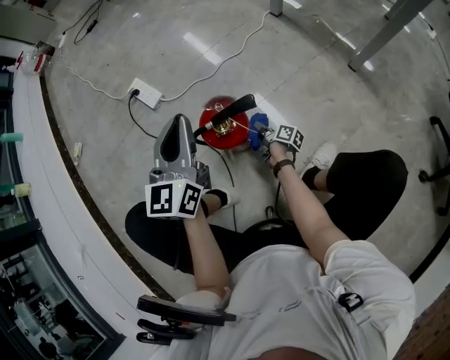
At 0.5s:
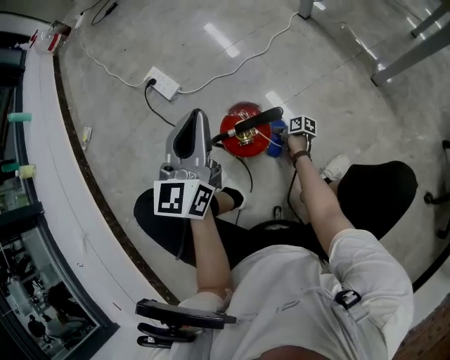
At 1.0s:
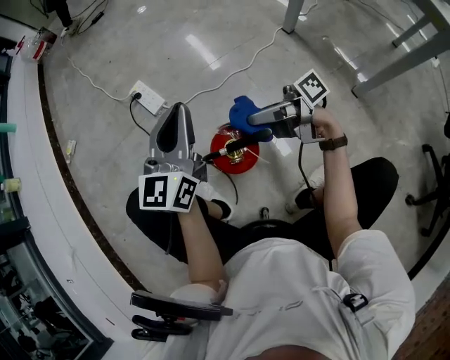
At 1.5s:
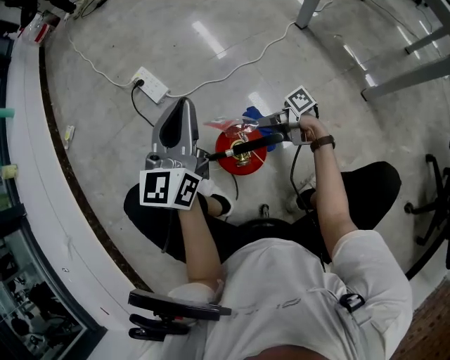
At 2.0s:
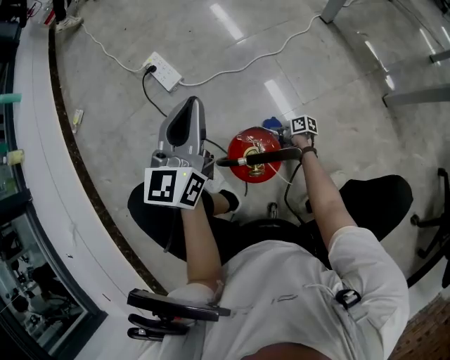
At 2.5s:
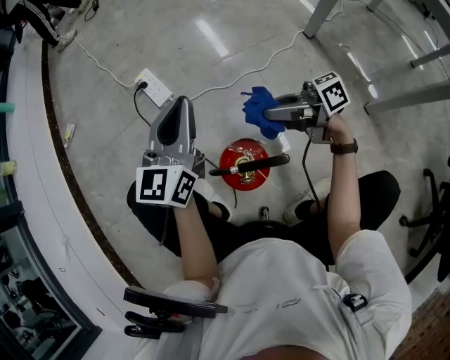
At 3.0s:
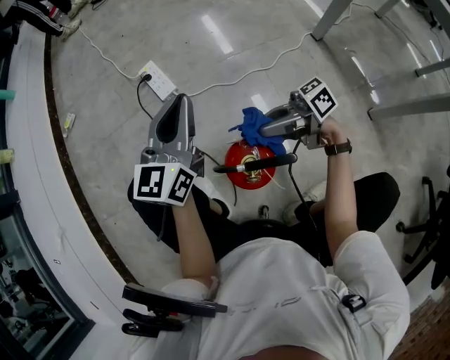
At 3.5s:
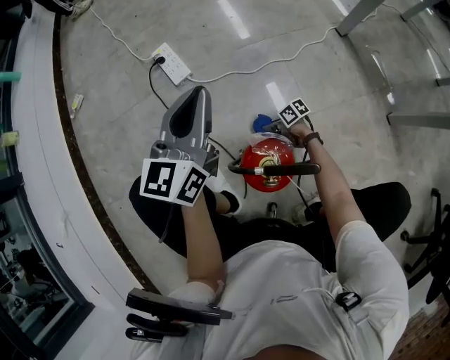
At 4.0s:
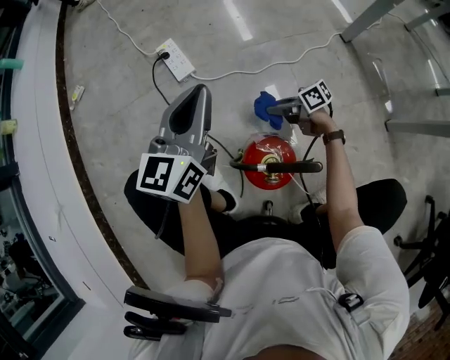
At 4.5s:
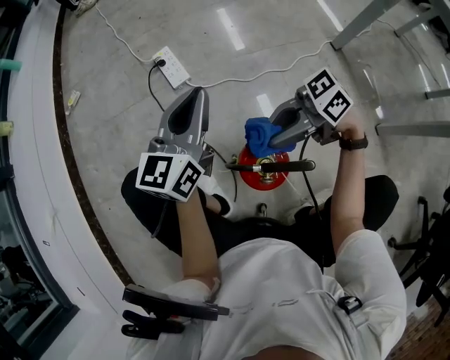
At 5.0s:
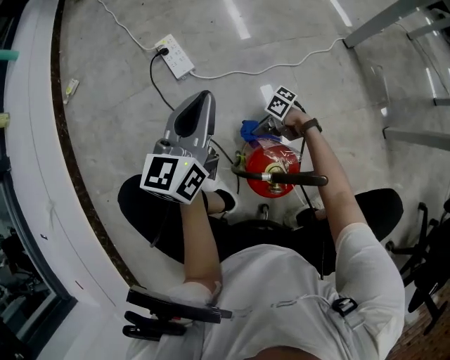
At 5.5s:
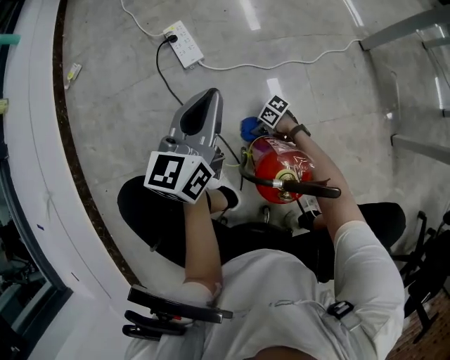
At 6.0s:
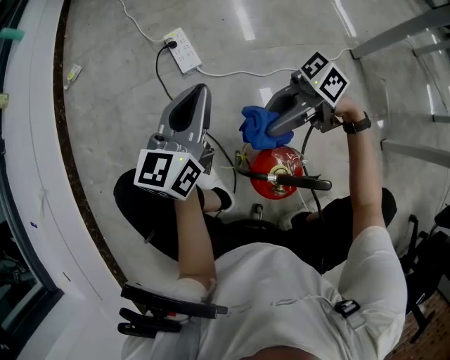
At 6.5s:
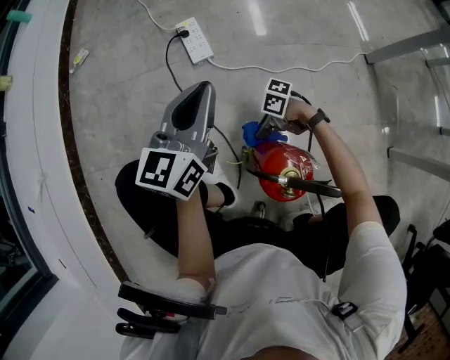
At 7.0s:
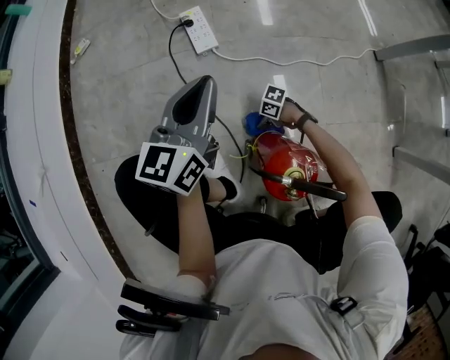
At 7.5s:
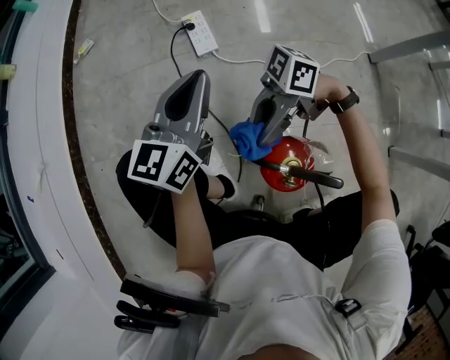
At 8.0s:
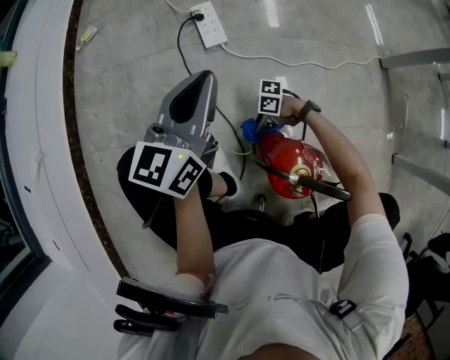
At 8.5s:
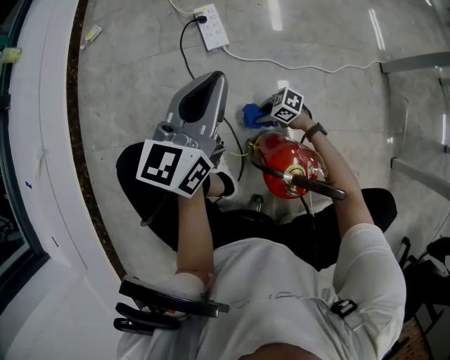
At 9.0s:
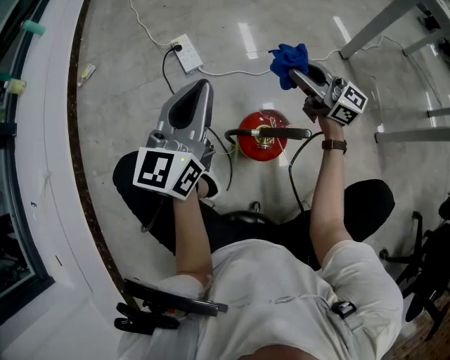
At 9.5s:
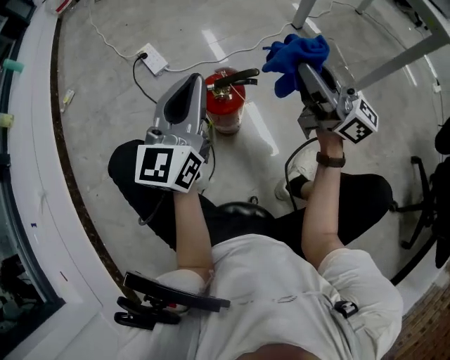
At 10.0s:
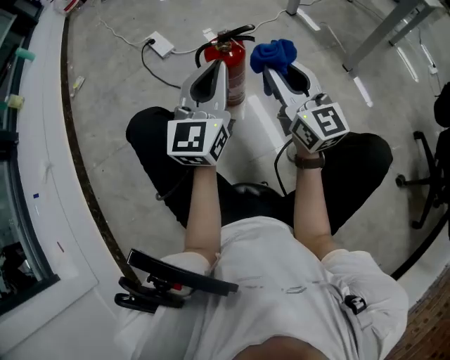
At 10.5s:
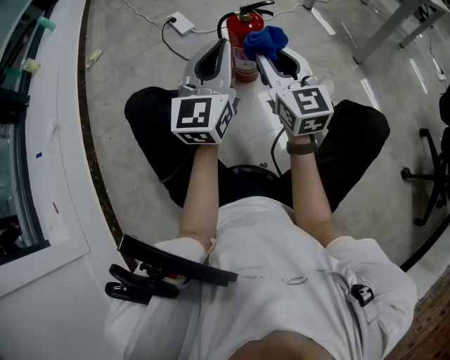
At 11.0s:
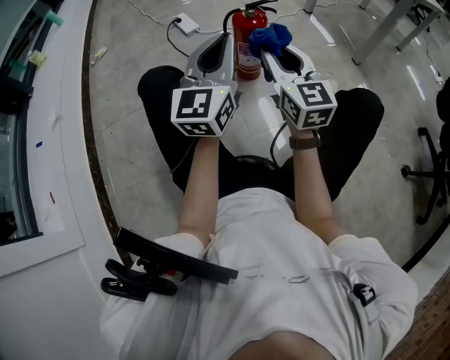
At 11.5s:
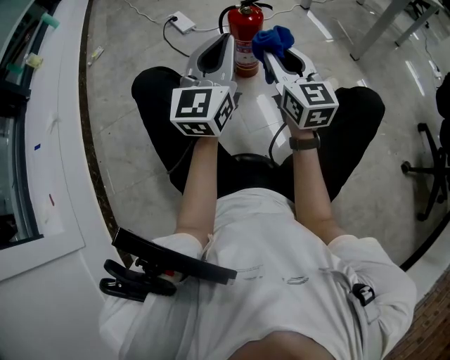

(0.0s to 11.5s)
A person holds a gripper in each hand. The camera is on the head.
0.0s - 2.0s: The left gripper moves approximately 10 cm. Meanwhile the right gripper goes up and down, approximately 50 cm each way, reversing 2 times, and rotates some 40 degrees.
2.0s - 4.0s: The right gripper goes up and down, roughly 40 cm each way, reversing 2 times, and swivels some 50 degrees.
4.0s - 6.0s: The right gripper swings up and down, about 40 cm each way, with 2 reversals, and turns by approximately 50 degrees, while the left gripper moves some 5 cm.
6.0s - 7.5s: The right gripper reaches about 40 cm downward, then returns, and rotates about 30 degrees.
7.5s - 9.5s: The left gripper moves some 25 cm, and turns by roughly 20 degrees; the right gripper changes place by roughly 35 cm, and turns by about 130 degrees.
9.5s - 11.5s: The right gripper heads backward and to the left, covering approximately 25 cm, and swivels roughly 40 degrees. Meanwhile the left gripper goes some 25 cm backward.

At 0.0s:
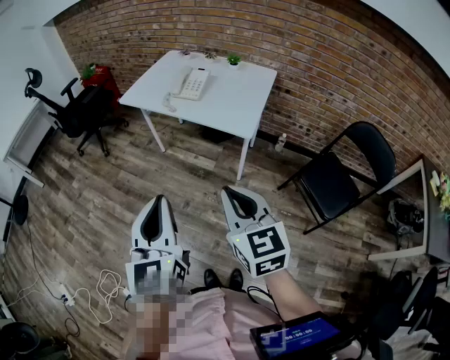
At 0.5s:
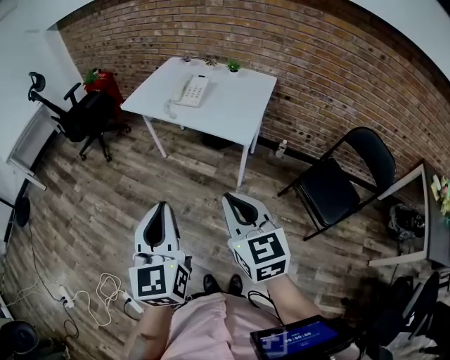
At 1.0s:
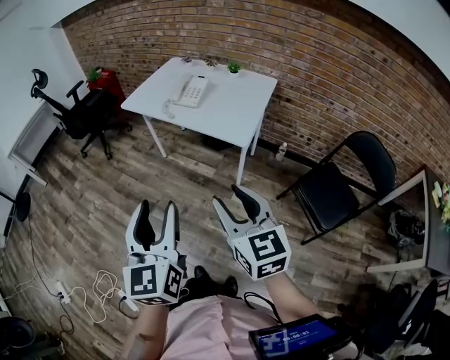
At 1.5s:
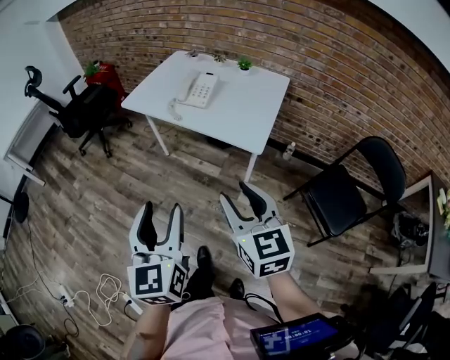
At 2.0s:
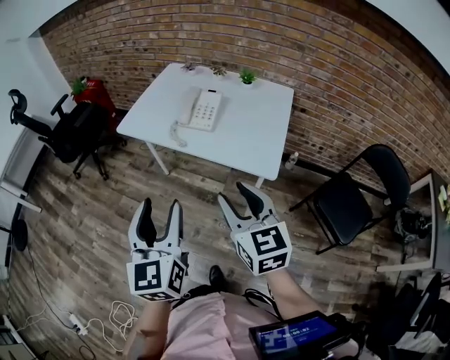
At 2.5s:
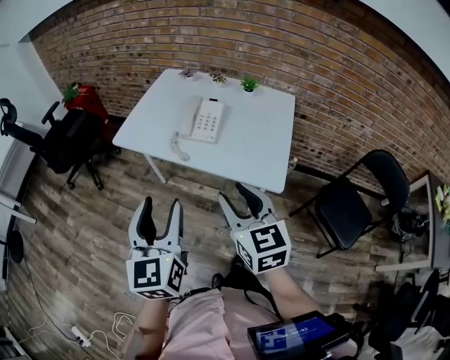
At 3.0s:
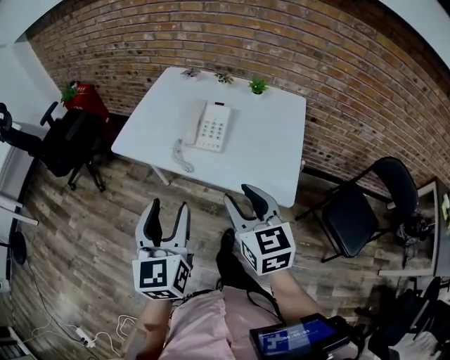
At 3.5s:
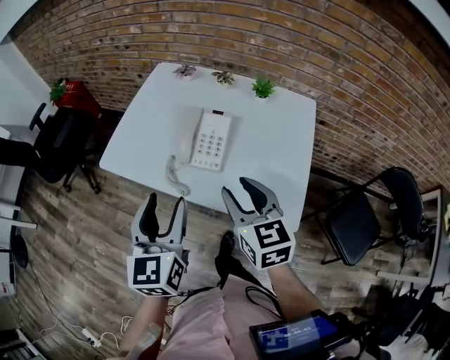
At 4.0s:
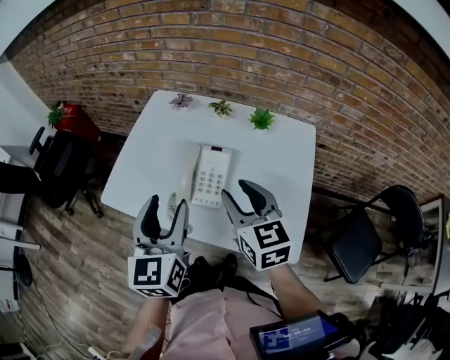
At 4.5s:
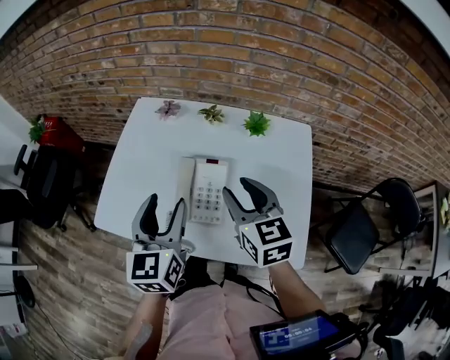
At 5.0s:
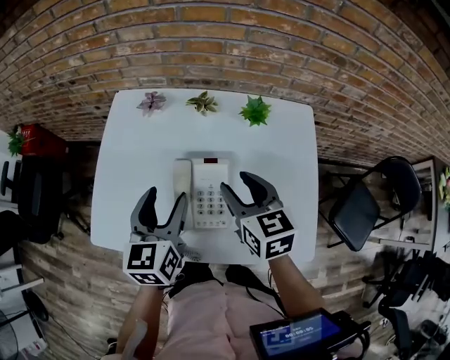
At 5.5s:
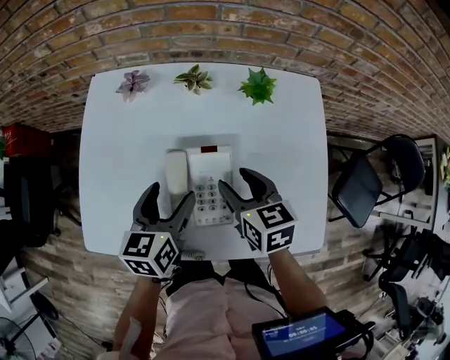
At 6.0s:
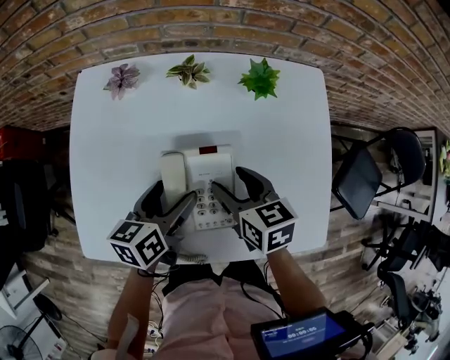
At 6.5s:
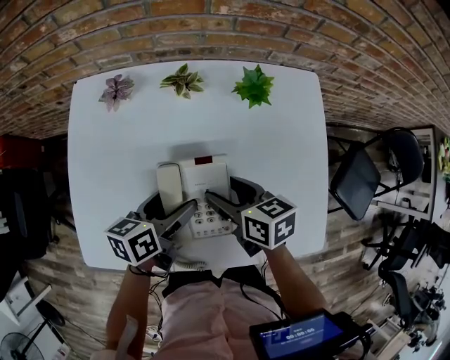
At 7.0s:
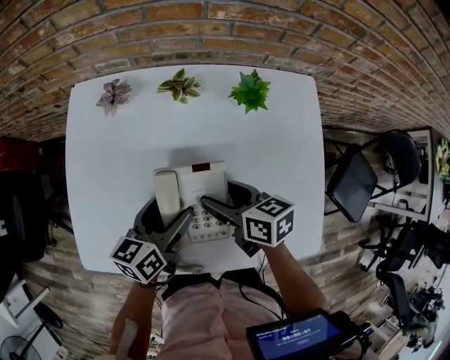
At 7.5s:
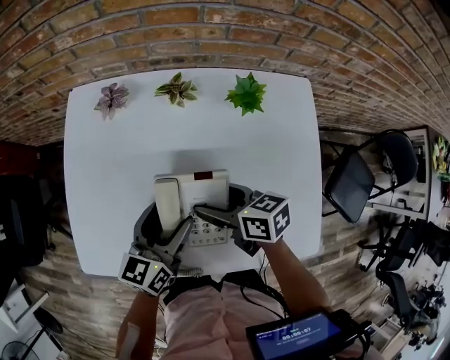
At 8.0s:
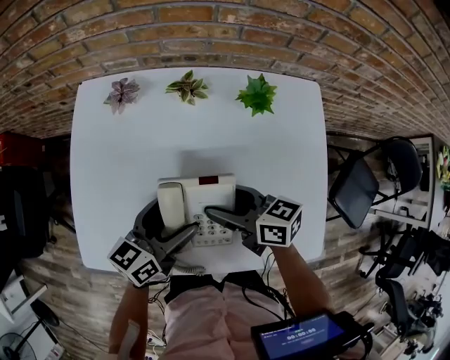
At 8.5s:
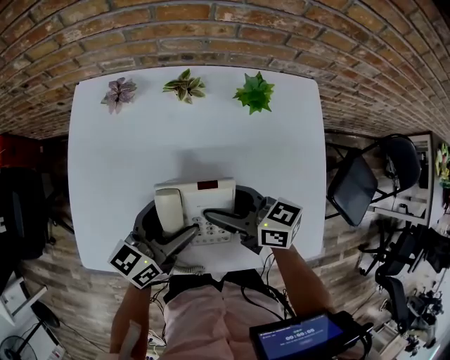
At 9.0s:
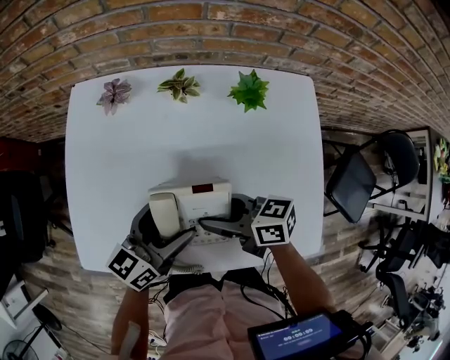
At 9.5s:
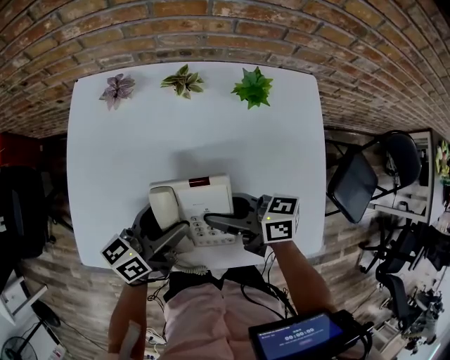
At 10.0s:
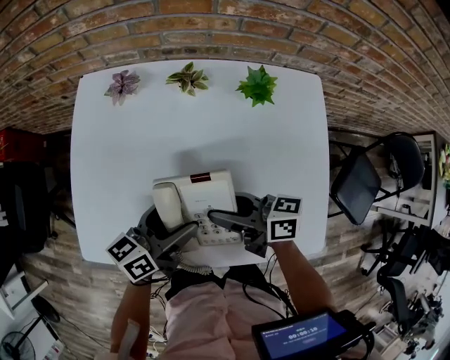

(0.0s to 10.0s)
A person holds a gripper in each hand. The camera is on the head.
0.0s - 2.0s: The two grippers go some 20 cm forward. The left gripper opens; the right gripper opens its fingers.
2.0s - 4.0s: The two grippers go some 35 cm forward.
4.0s - 6.0s: Both grippers move downward, about 20 cm. The right gripper rotates some 30 degrees, while the left gripper changes its angle by approximately 50 degrees.
6.0s - 8.0s: The right gripper changes its angle by some 30 degrees.
8.0s - 10.0s: The grippers move only a little.

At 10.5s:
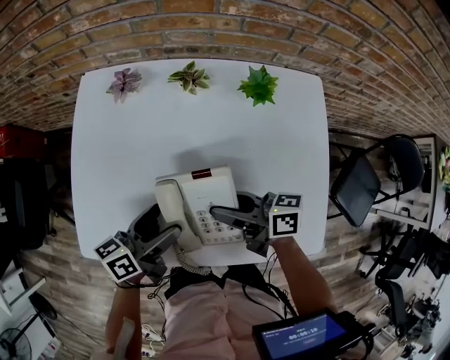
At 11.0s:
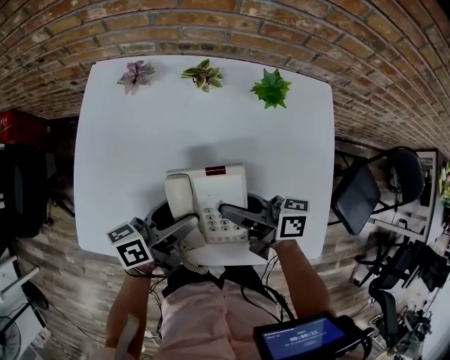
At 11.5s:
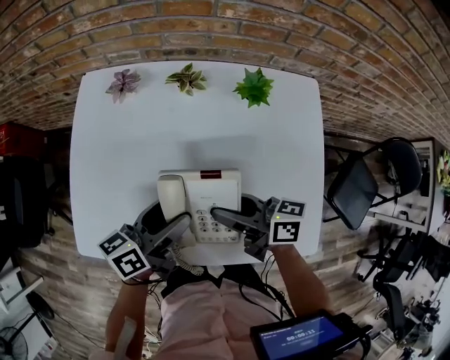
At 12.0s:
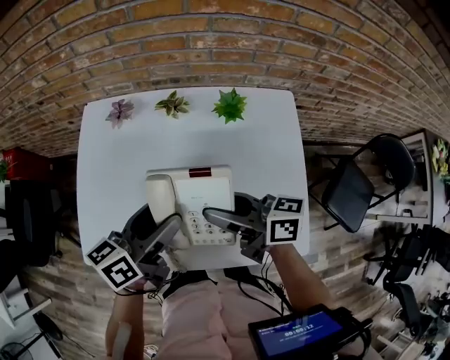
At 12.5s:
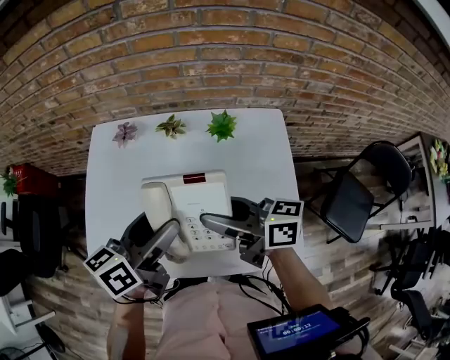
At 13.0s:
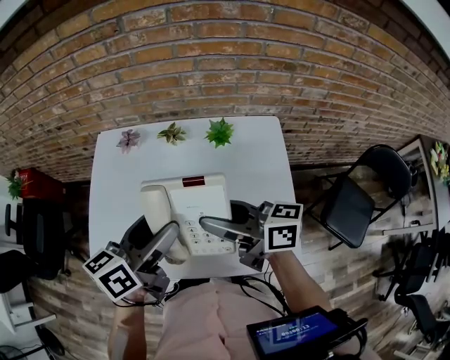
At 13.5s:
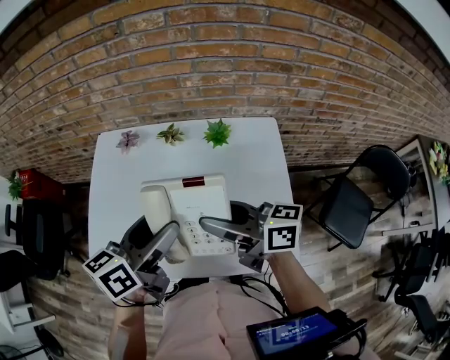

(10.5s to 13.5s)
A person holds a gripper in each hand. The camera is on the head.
10.5s - 12.0s: The right gripper travels upward by approximately 10 cm, while the left gripper moves upward and to the right, roughly 15 cm.
12.0s - 13.5s: Both grippers travel together upward, roughly 10 cm.

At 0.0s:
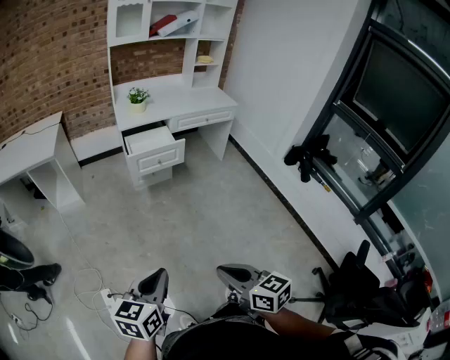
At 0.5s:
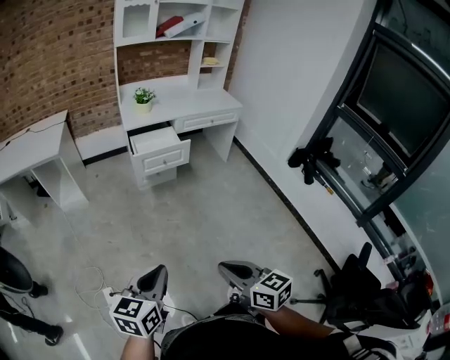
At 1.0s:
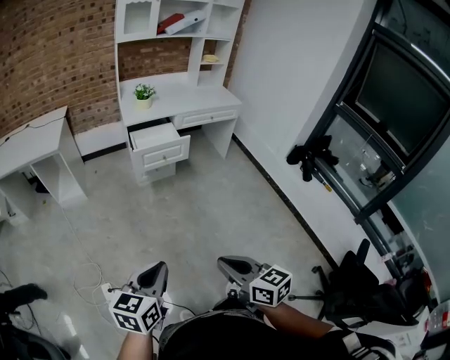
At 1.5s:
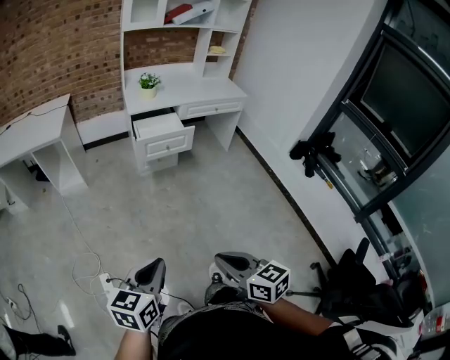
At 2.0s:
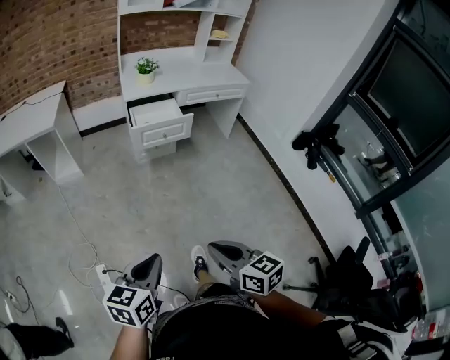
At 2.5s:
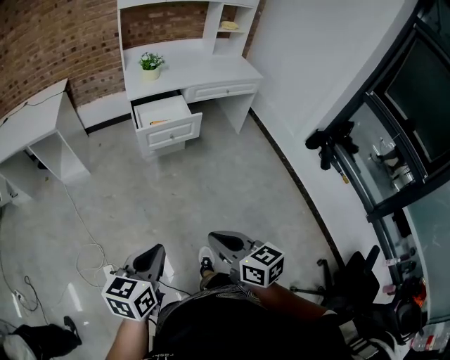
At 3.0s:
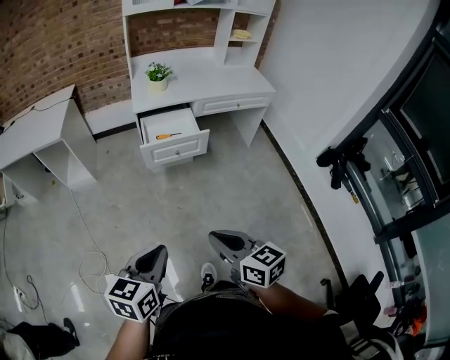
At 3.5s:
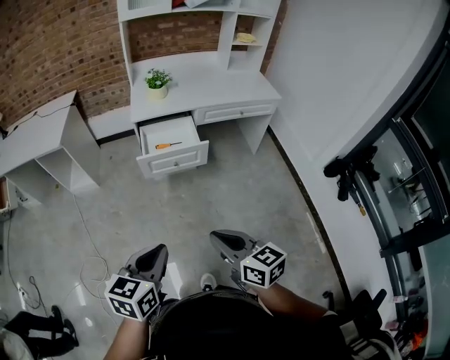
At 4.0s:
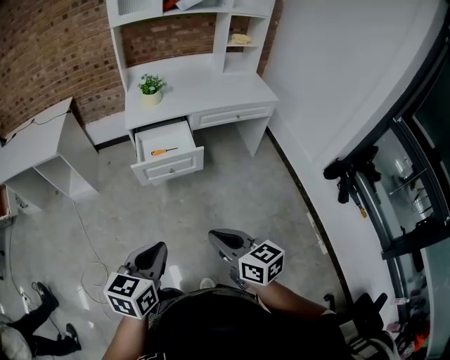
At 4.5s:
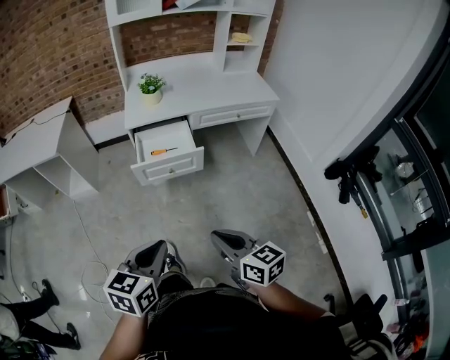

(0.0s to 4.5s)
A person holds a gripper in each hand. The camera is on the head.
0.0s - 2.0s: The right gripper changes place by some 5 cm.
2.0s - 4.5s: Both grippers travel together forward and to the right, roughly 35 cm.
